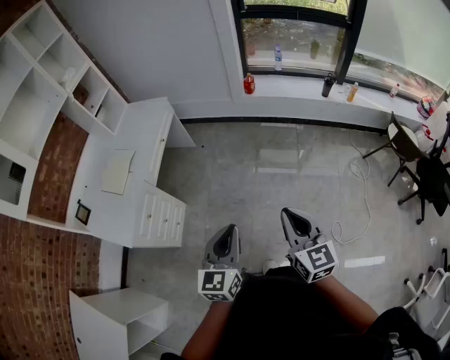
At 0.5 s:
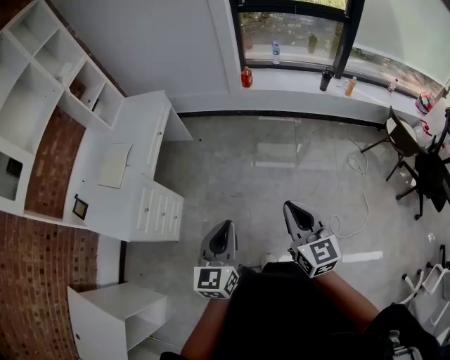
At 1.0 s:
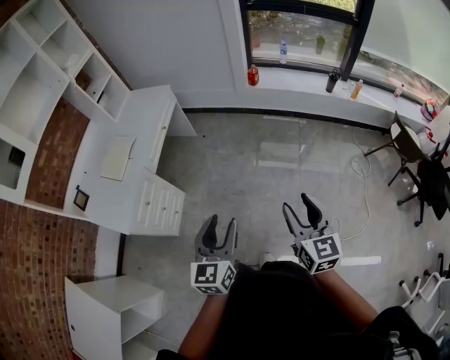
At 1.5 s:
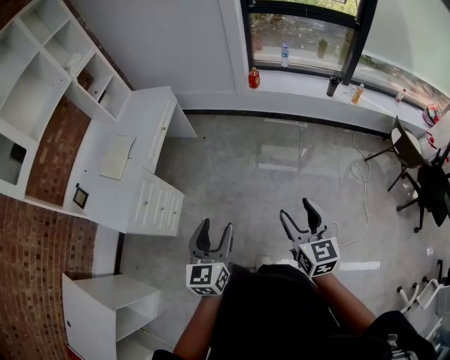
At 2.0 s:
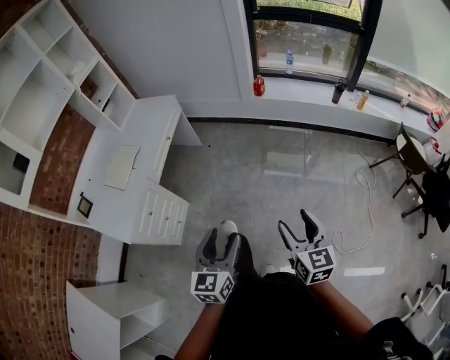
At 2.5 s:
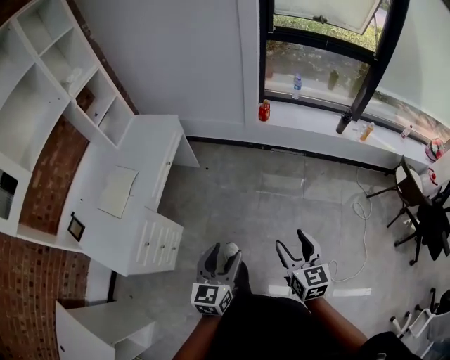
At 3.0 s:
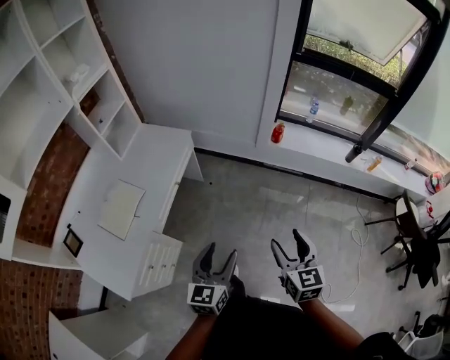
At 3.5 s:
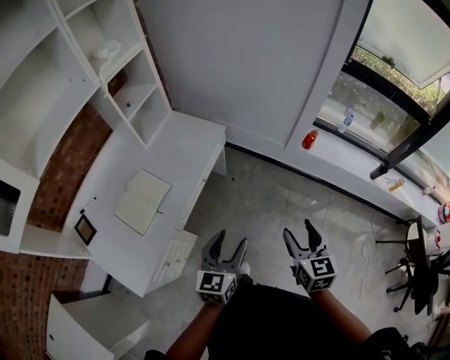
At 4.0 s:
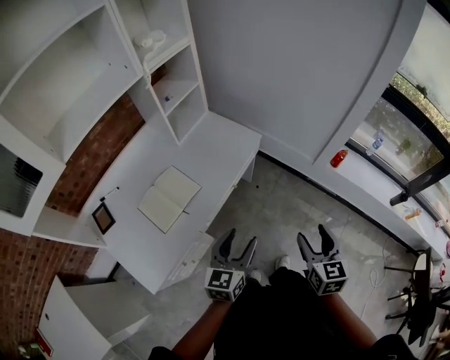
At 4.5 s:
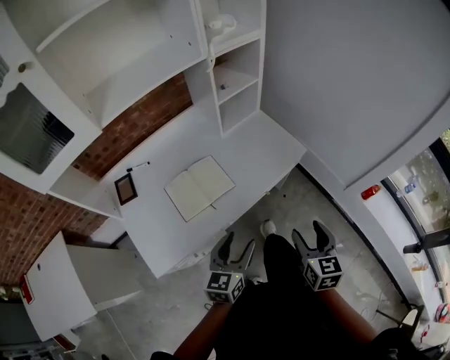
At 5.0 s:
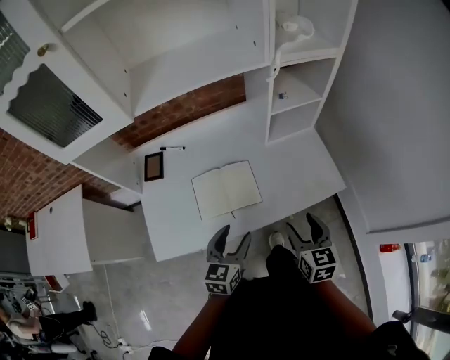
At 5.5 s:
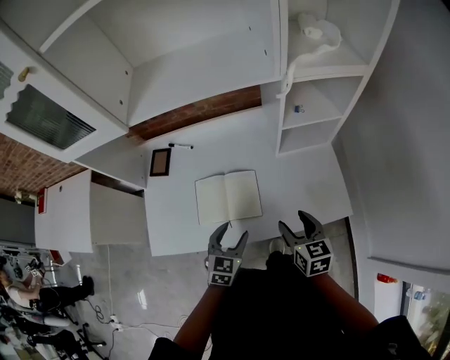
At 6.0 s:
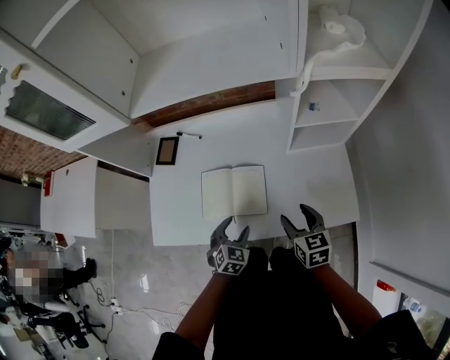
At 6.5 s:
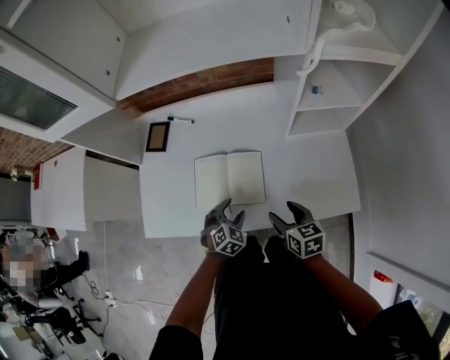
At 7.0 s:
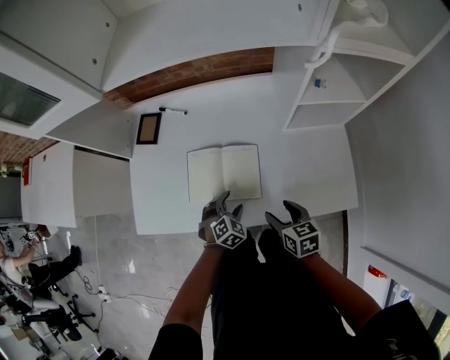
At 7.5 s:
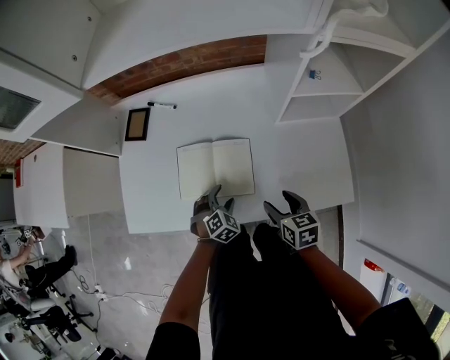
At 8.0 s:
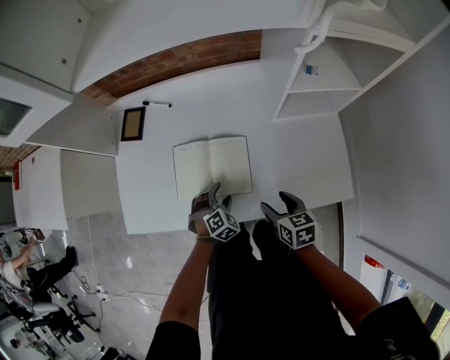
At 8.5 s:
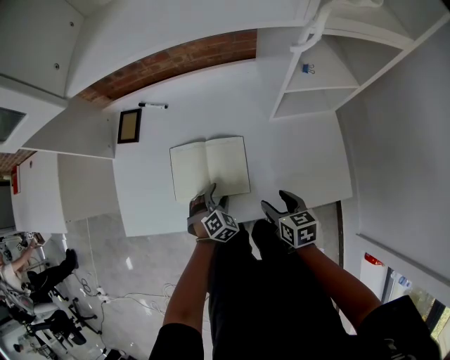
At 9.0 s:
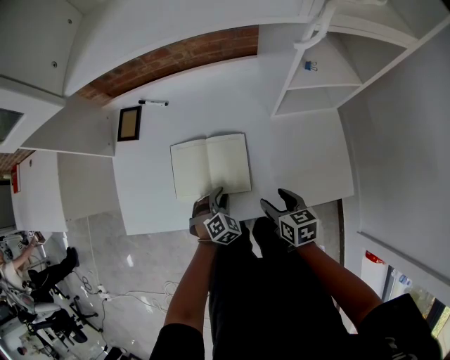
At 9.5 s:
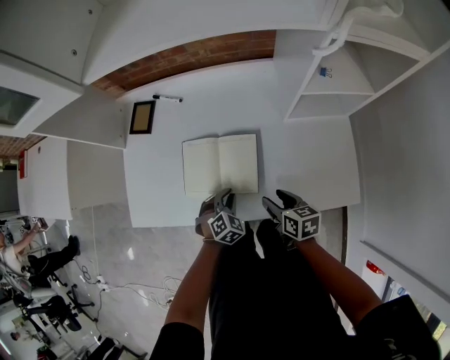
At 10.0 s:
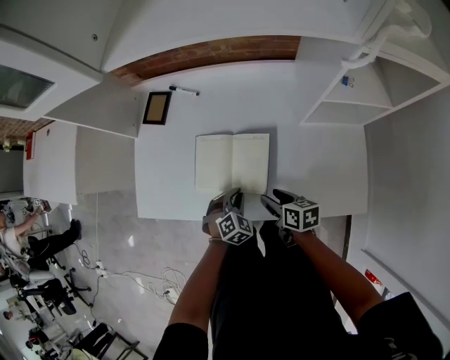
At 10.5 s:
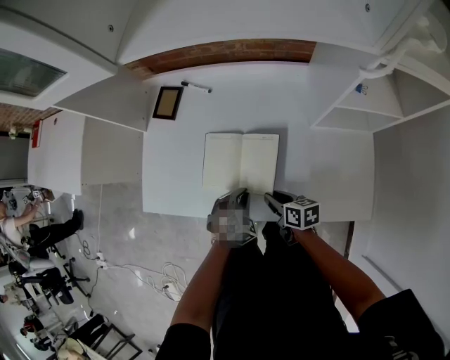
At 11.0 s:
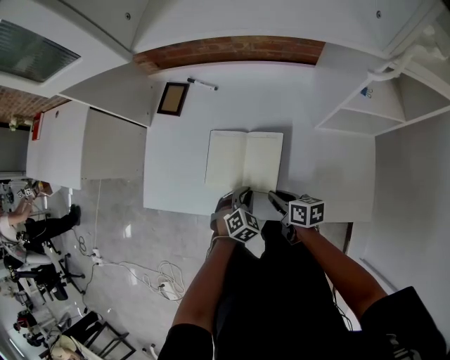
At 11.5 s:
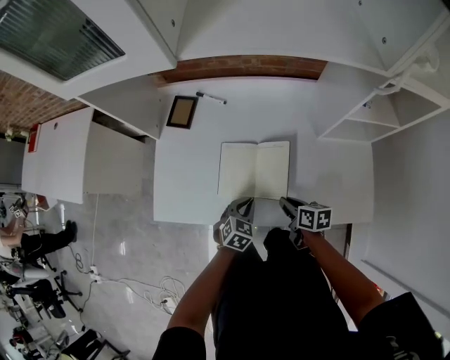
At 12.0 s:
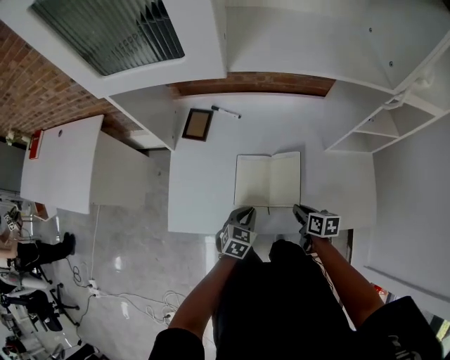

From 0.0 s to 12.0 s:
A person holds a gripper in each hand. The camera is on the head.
From 0.0 s to 2.0 s: The right gripper ends up approximately 5 cm from where it was, and opens its fingers; the left gripper opens its fingers.
From 2.0 s to 4.0 s: The pair of grippers is taken forward and to the left, roughly 50 cm.
From 4.0 s to 6.0 s: The left gripper moves about 35 cm, and angles its fingers downward, by some 30 degrees. Meanwhile the right gripper changes place by about 50 cm, and changes its angle by about 60 degrees.
From 6.0 s to 8.0 s: Both grippers travel together downward, approximately 10 cm. The left gripper rotates some 30 degrees.
From 8.0 s to 10.0 s: The left gripper closes its fingers, while the right gripper shifts approximately 5 cm to the left, and rotates roughly 20 degrees.
From 10.0 s to 12.0 s: The right gripper goes approximately 5 cm to the left, and closes. Meanwhile the left gripper shifts some 15 cm to the left and upward, and changes its angle by approximately 30 degrees.

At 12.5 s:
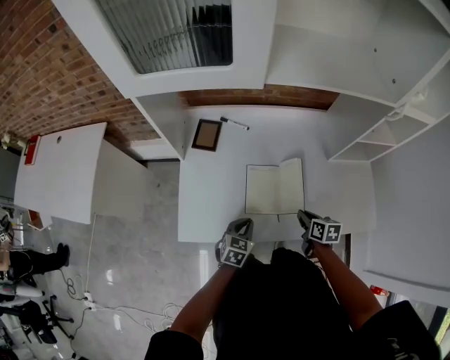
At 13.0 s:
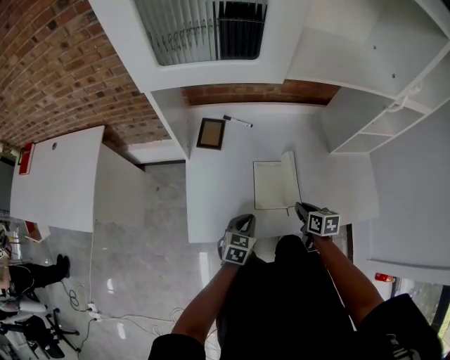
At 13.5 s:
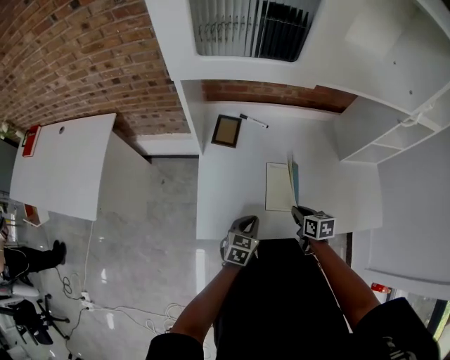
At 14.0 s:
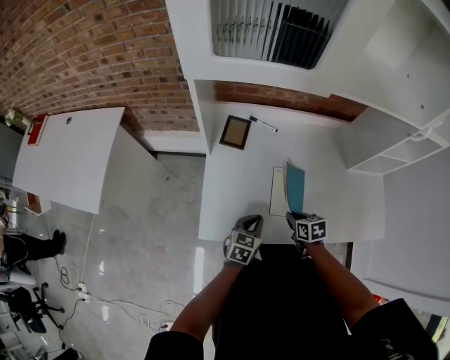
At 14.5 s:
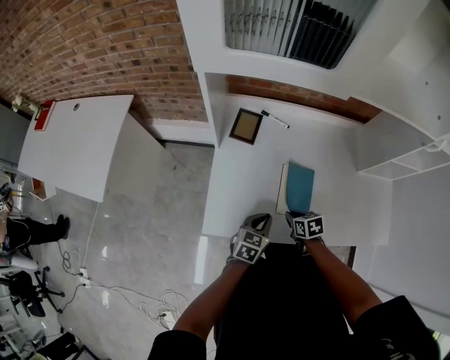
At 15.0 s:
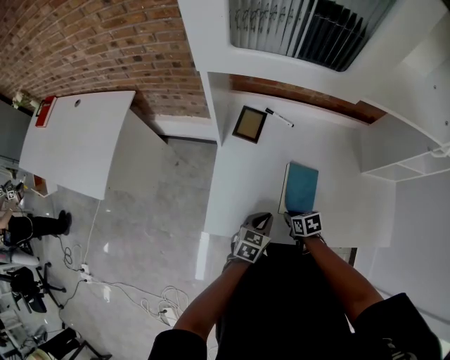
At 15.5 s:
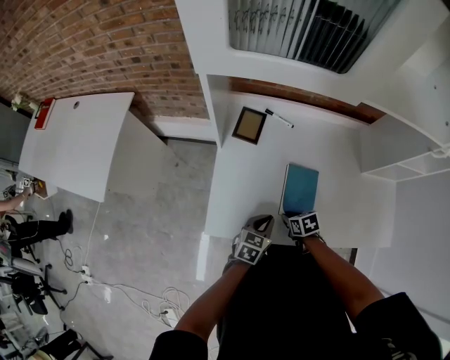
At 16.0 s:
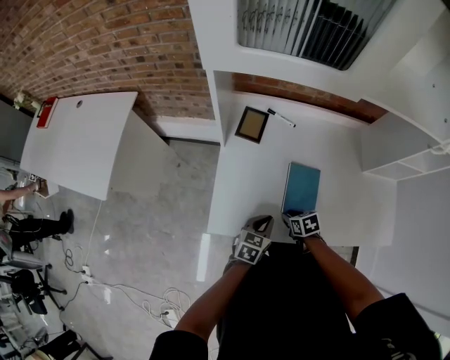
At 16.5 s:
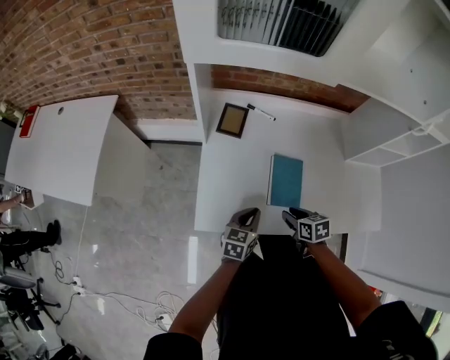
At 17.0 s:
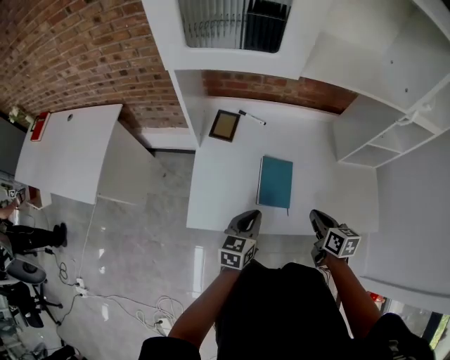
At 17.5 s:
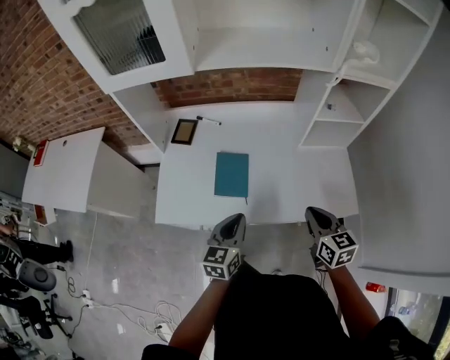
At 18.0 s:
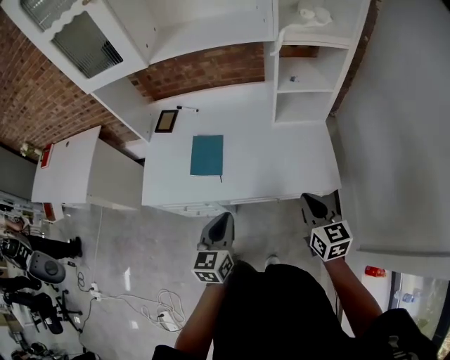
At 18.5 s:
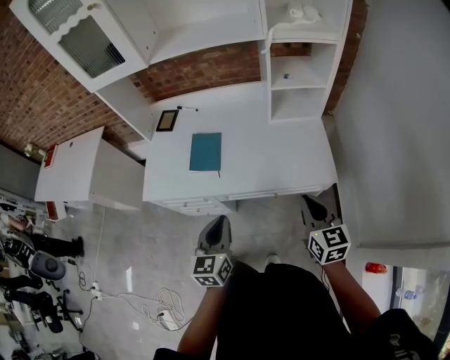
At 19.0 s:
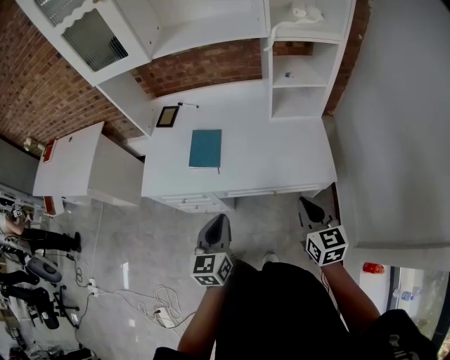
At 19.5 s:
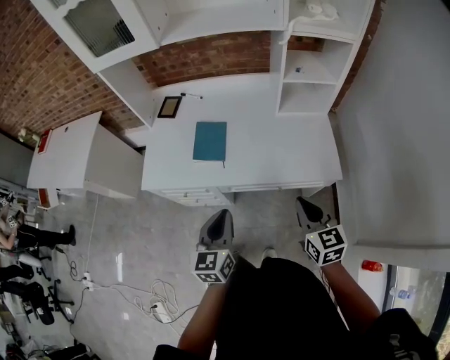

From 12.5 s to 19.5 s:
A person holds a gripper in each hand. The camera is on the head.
From 12.5 s to 14.5 s: The right gripper is displaced to the left by roughly 20 cm, and swivels about 30 degrees. Meanwhile the left gripper goes some 5 cm to the left.
From 14.5 s to 16.0 s: The right gripper opens.
From 16.0 s to 17.5 s: The right gripper is displaced to the right, upward and backward by some 50 cm, tilts its fingers approximately 40 degrees upward, and closes its fingers. Meanwhile the left gripper goes about 30 cm to the right, upward and backward.
From 17.5 s to 19.5 s: The grippers both shift backward and to the right by roughly 15 cm.

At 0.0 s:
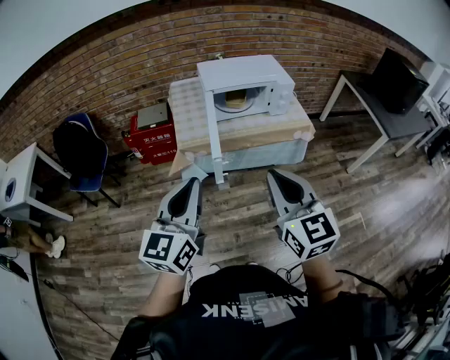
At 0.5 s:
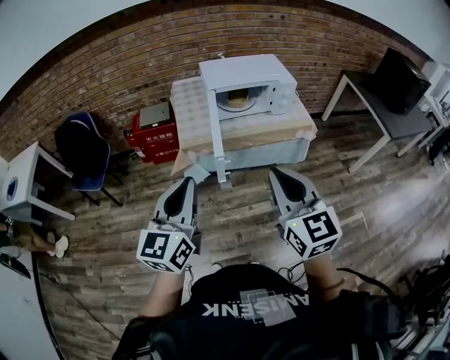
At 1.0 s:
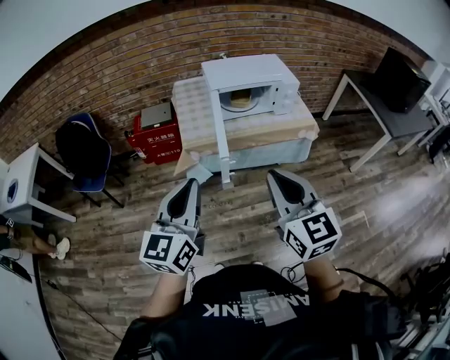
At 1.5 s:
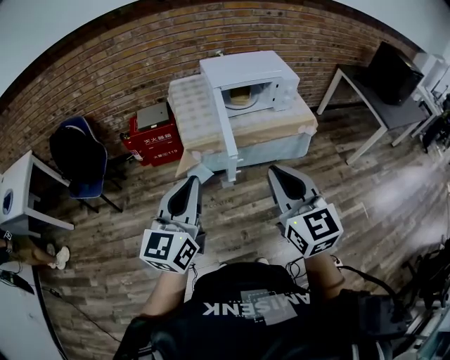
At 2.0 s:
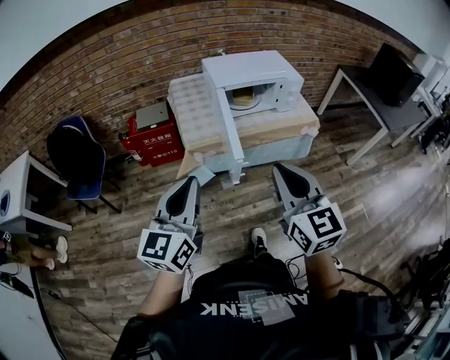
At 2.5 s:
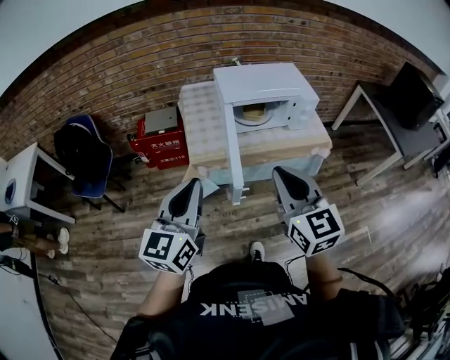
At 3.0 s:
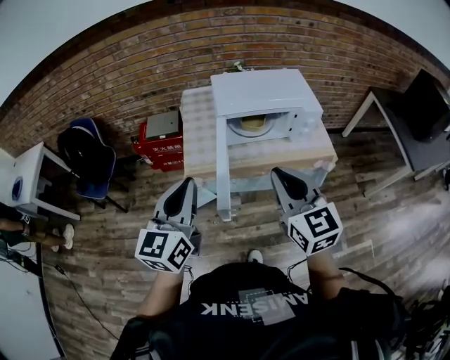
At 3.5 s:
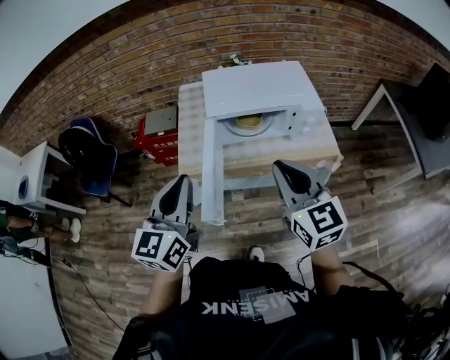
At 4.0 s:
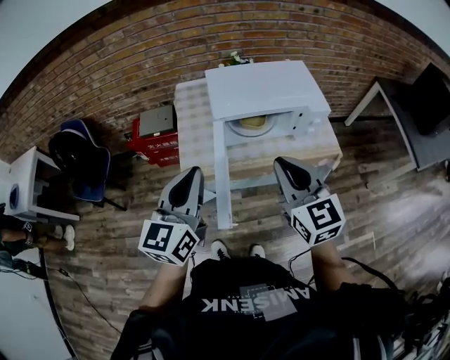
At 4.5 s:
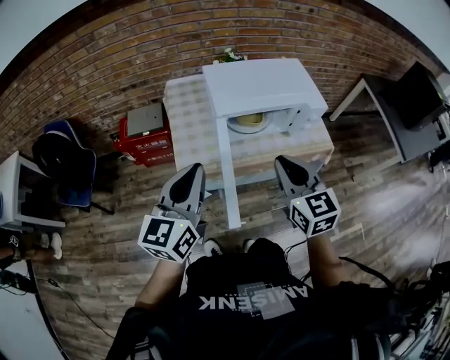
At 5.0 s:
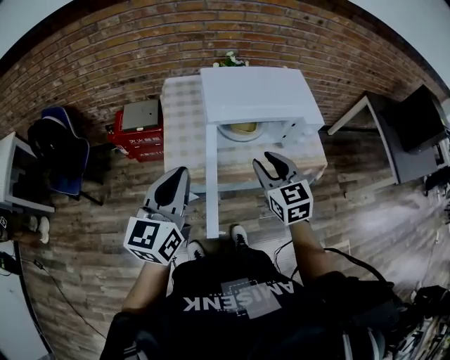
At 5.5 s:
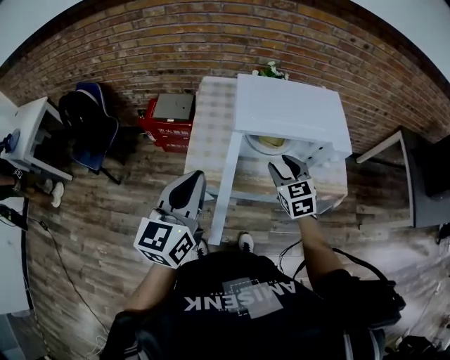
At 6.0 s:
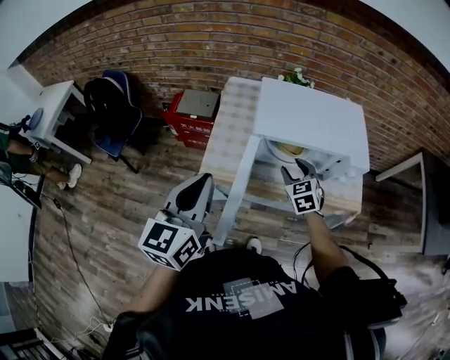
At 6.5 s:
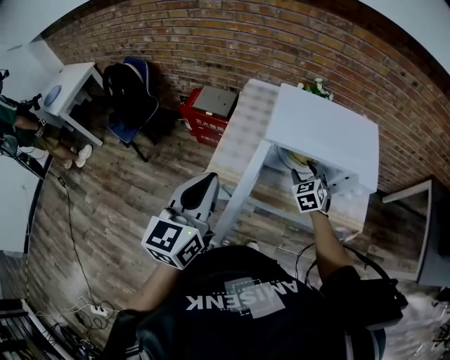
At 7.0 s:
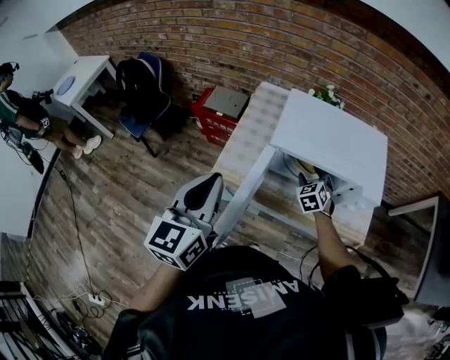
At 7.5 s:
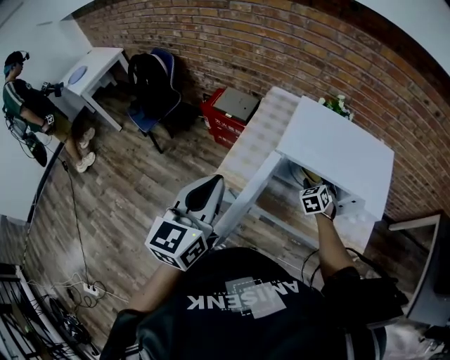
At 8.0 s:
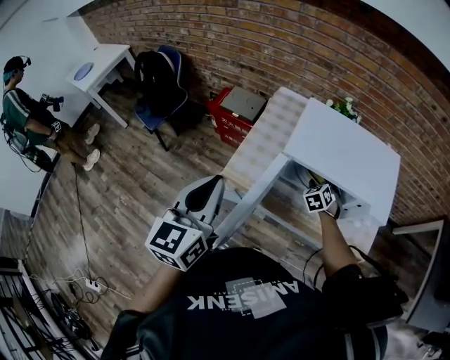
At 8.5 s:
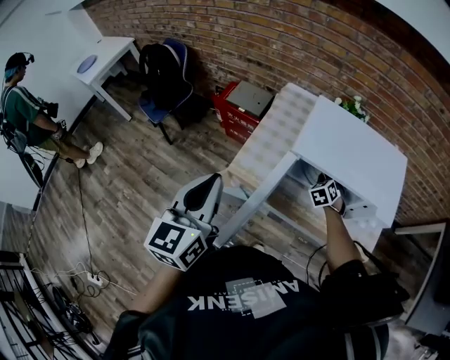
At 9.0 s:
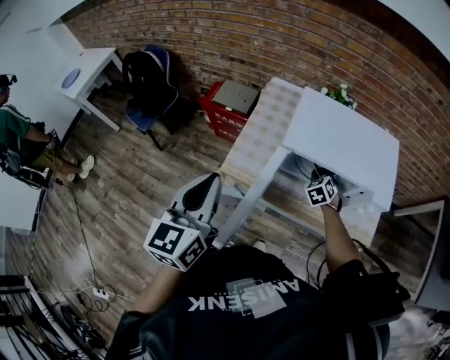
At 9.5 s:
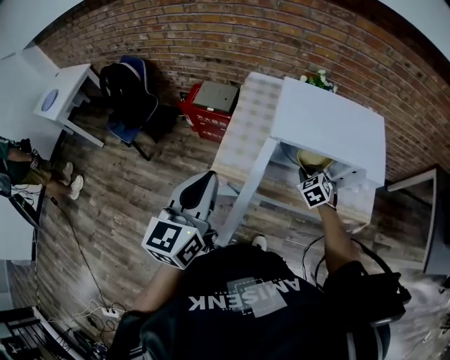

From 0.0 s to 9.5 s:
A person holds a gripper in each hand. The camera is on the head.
From 0.0 s to 2.0 s: The grippers both shift to the left by approximately 10 cm.
From 2.0 s to 4.0 s: The grippers both shift forward and to the right by approximately 30 cm.
From 4.0 s to 5.5 s: The right gripper heads downward and forward, covering about 20 cm, rotates approximately 20 degrees, and opens up.
From 5.5 s to 7.5 s: The right gripper moves downward and forward, roughly 20 cm, and turns by some 30 degrees.
From 7.5 s to 9.5 s: The right gripper moves backward, approximately 5 cm, and closes its fingers.
